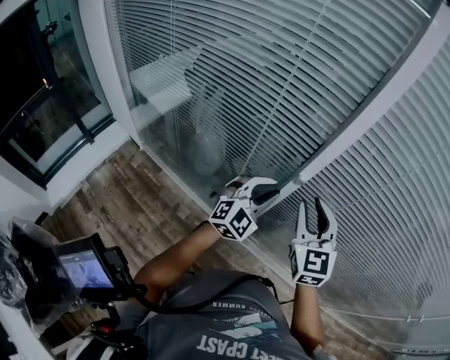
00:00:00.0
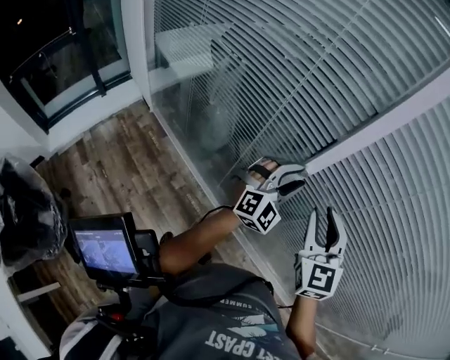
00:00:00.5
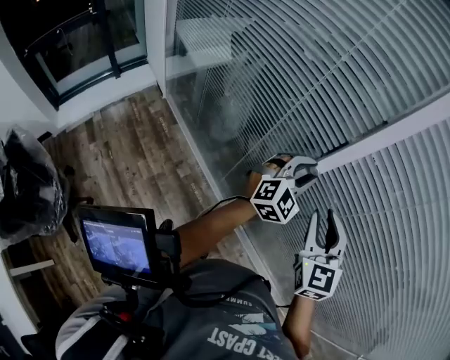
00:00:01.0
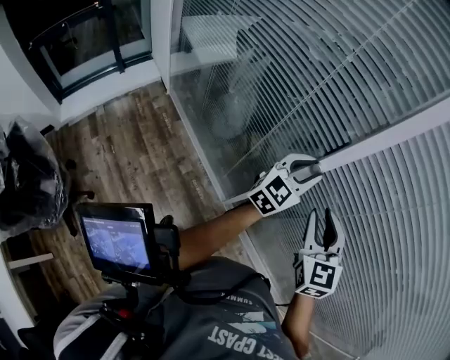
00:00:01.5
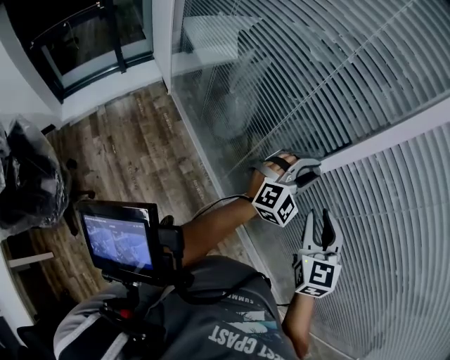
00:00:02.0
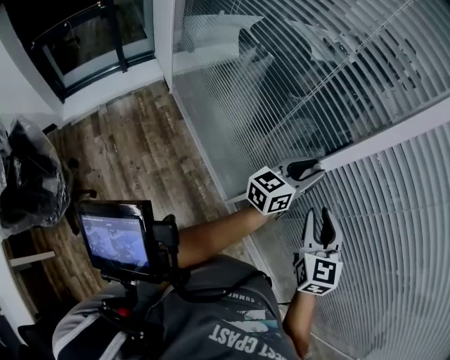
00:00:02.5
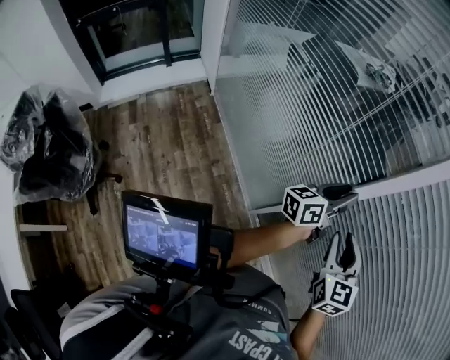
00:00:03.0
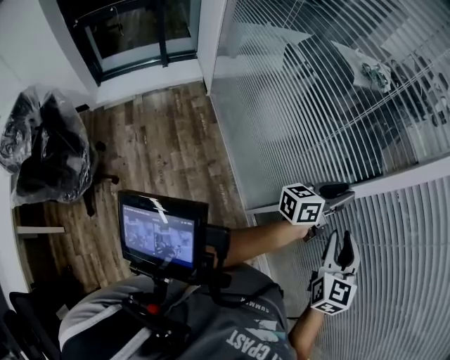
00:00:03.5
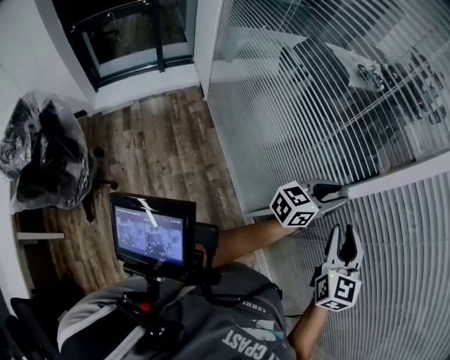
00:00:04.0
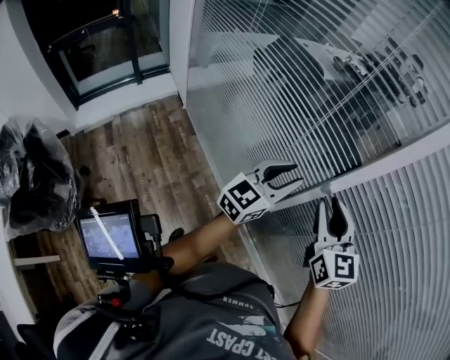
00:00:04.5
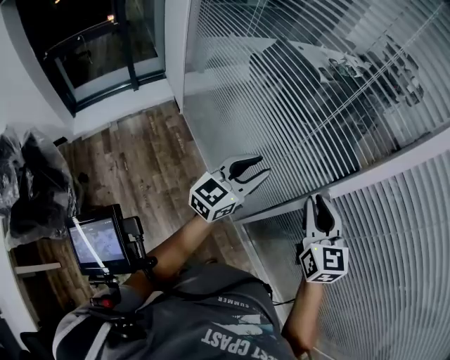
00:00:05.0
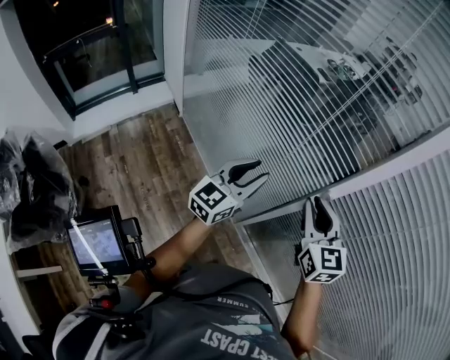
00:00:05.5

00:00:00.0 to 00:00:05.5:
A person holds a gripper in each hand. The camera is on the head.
00:00:00.0 to 00:00:02.0: The left gripper is displaced to the right and forward by roughly 10 cm, and changes its angle by some 20 degrees; the right gripper ends up approximately 5 cm from where it was.
00:00:02.0 to 00:00:03.5: The left gripper rotates around the line of its fingers by roughly 90 degrees, counterclockwise from behind.
00:00:03.5 to 00:00:05.5: The left gripper heads to the left, covering some 20 cm, and rotates around the line of its fingers by roughly 40 degrees, clockwise from behind; the right gripper travels to the left by approximately 10 cm.

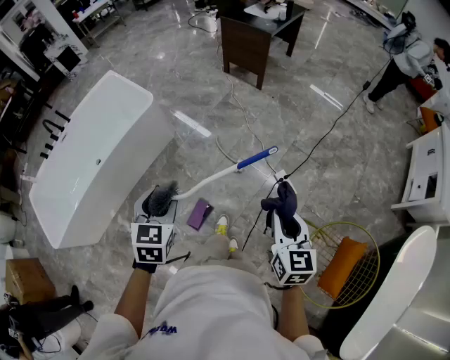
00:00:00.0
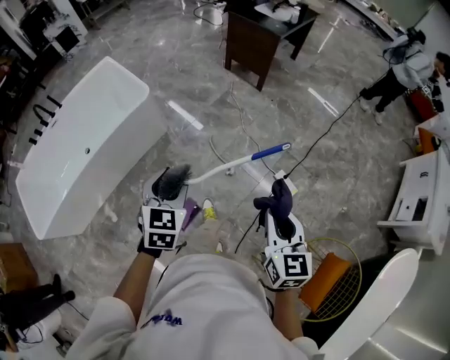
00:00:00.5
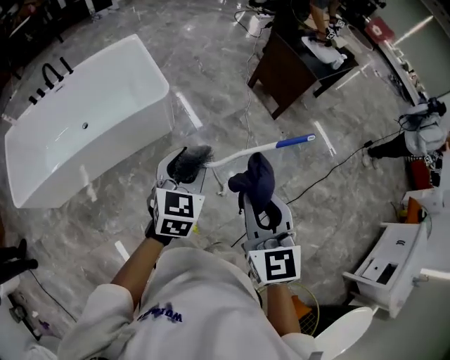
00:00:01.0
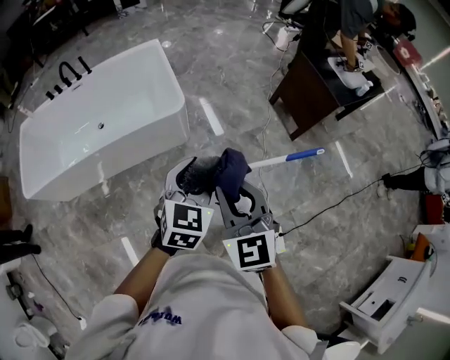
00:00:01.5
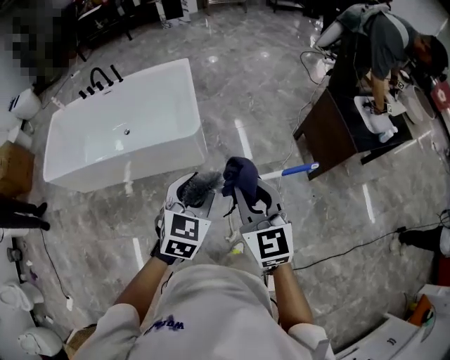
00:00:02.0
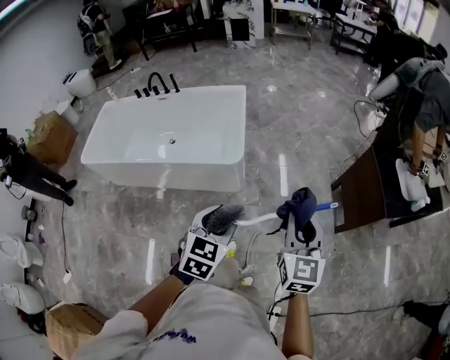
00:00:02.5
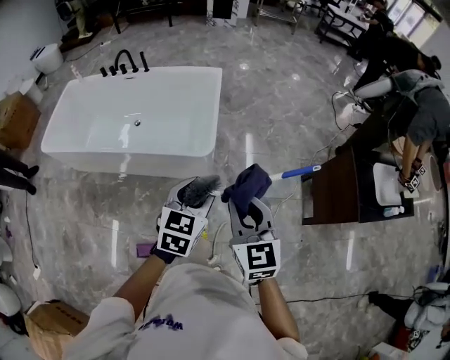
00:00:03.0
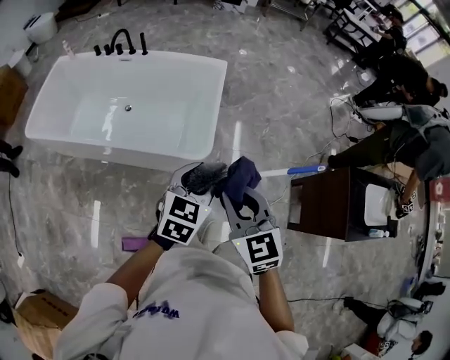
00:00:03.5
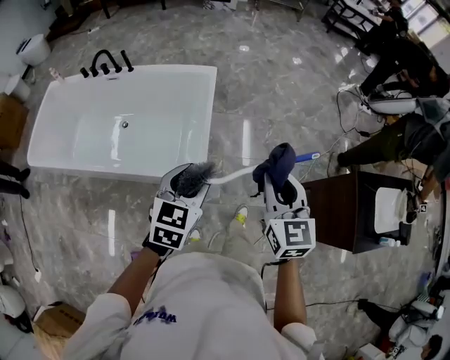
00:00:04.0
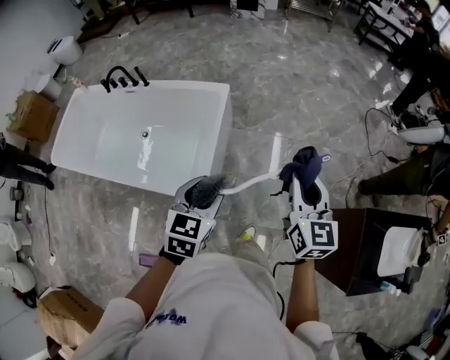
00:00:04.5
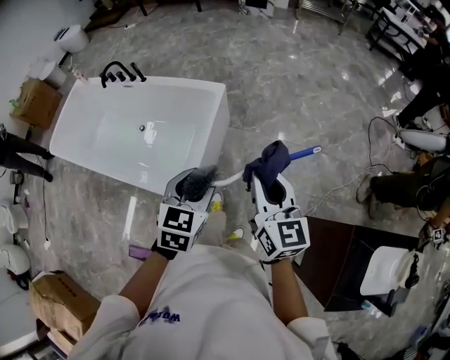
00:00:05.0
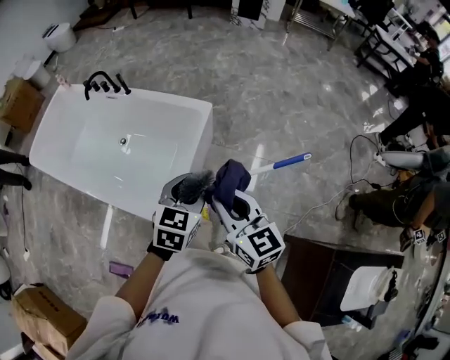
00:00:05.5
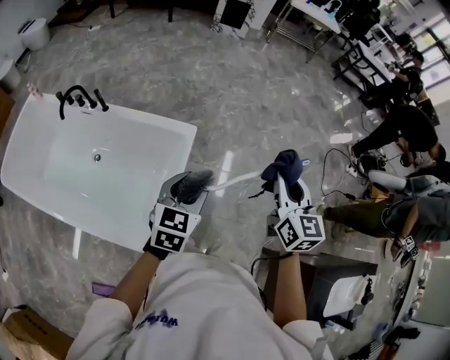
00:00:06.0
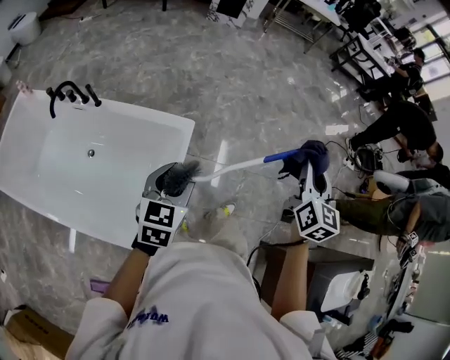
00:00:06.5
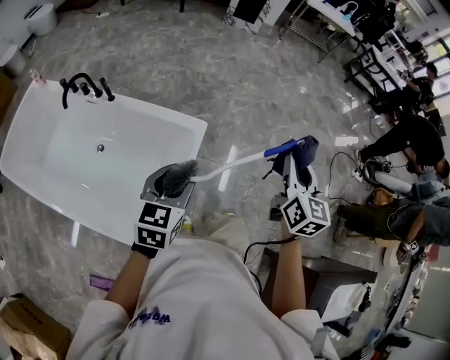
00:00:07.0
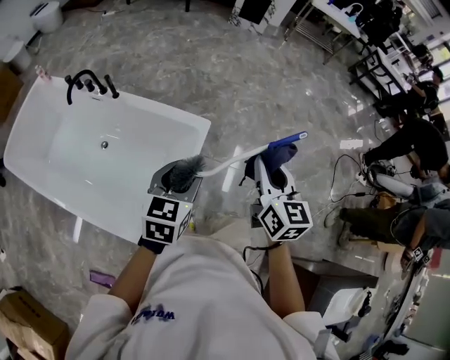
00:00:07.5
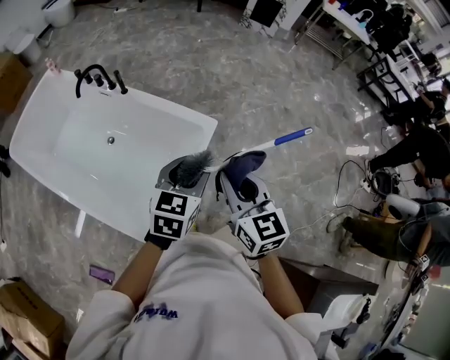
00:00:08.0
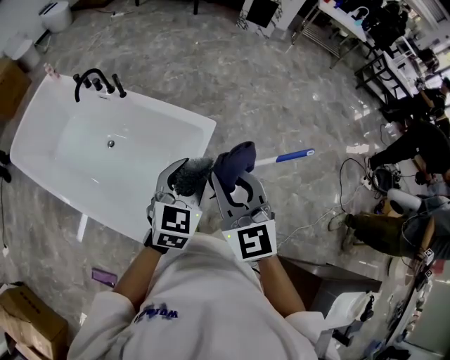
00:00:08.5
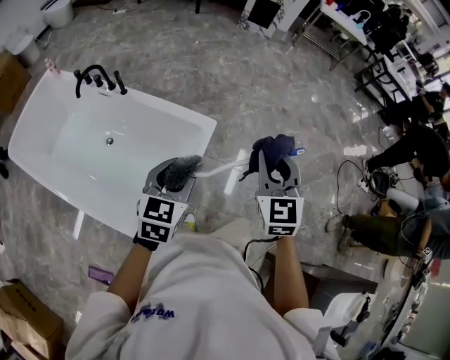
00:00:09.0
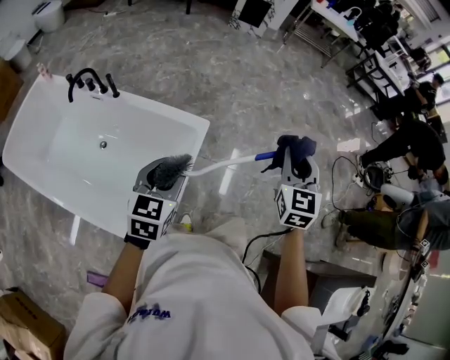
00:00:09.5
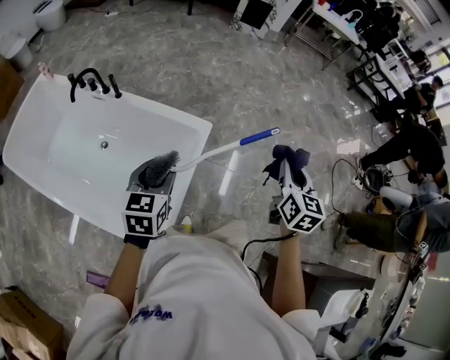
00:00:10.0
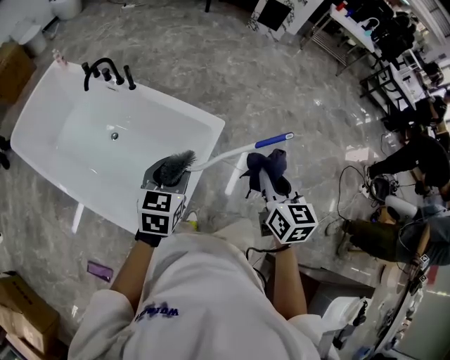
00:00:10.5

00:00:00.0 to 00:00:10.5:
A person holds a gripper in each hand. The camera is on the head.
00:00:00.0 to 00:00:02.0: Both grippers are carried approximately 50 cm. The right gripper changes its angle by roughly 60 degrees, while the left gripper turns by approximately 30 degrees.
00:00:02.0 to 00:00:04.0: Both grippers travel together forward, some 40 cm.
00:00:04.0 to 00:00:06.5: Both grippers are carried some 50 cm.
00:00:06.5 to 00:00:08.5: The right gripper ends up roughly 30 cm from where it was, and rotates approximately 50 degrees.
00:00:08.5 to 00:00:10.5: The left gripper is displaced to the left by about 10 cm, while the right gripper goes some 10 cm to the right and downward, and swivels some 30 degrees.

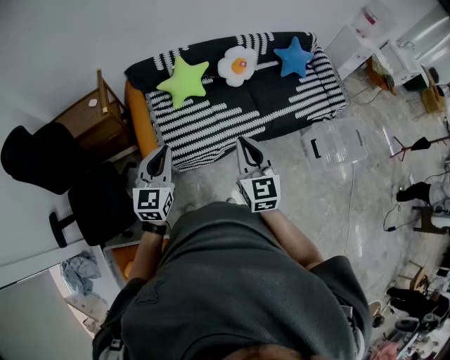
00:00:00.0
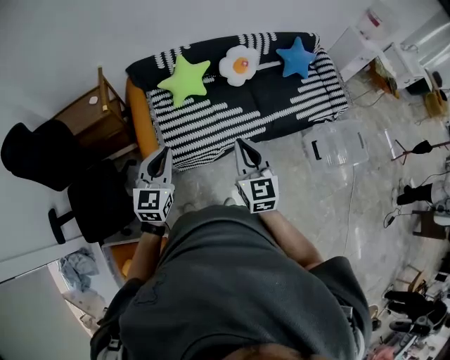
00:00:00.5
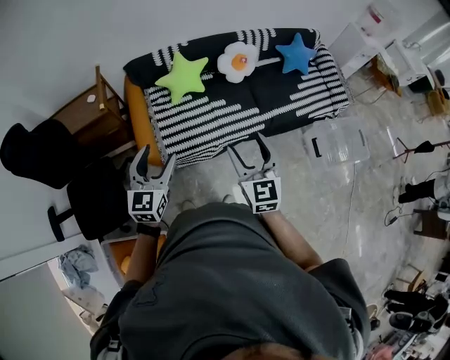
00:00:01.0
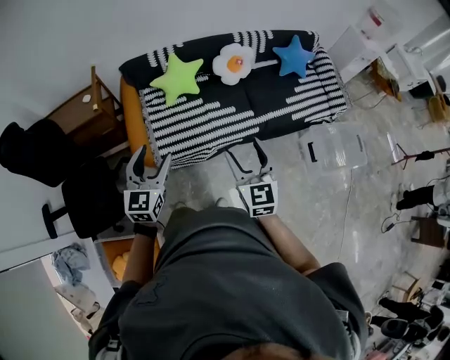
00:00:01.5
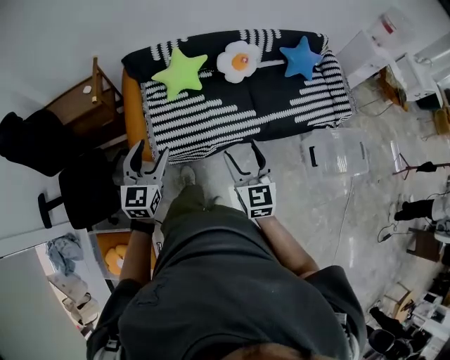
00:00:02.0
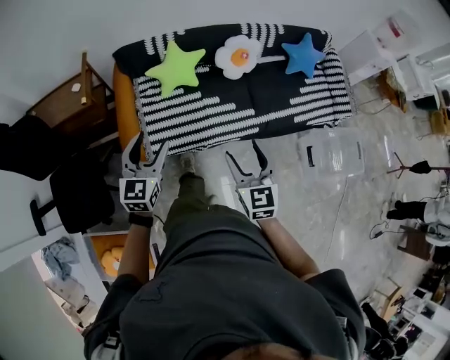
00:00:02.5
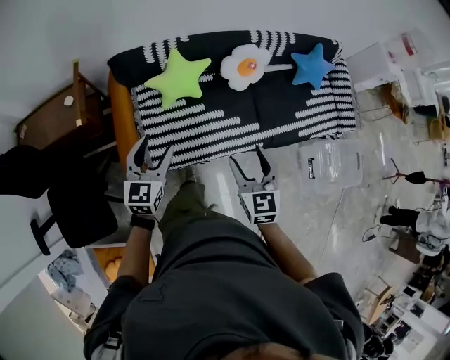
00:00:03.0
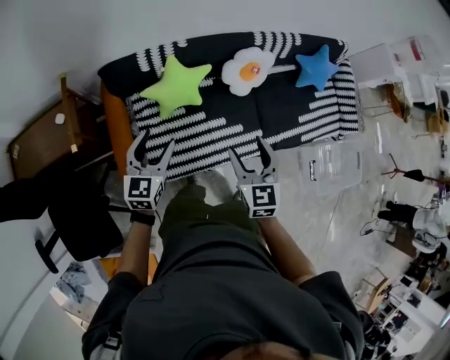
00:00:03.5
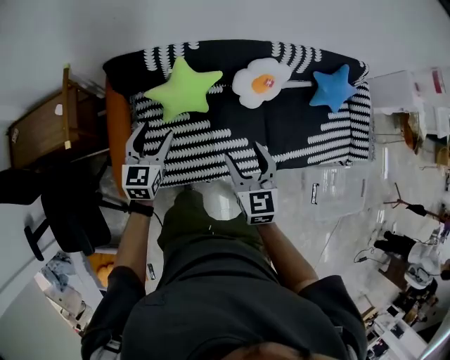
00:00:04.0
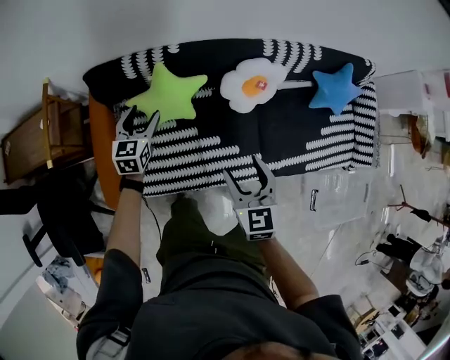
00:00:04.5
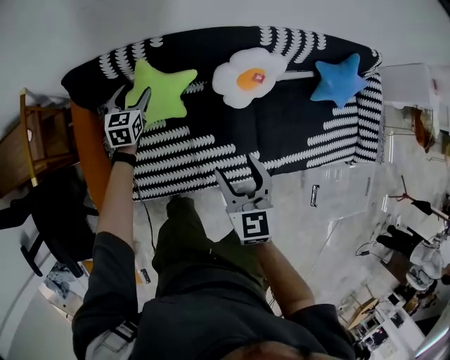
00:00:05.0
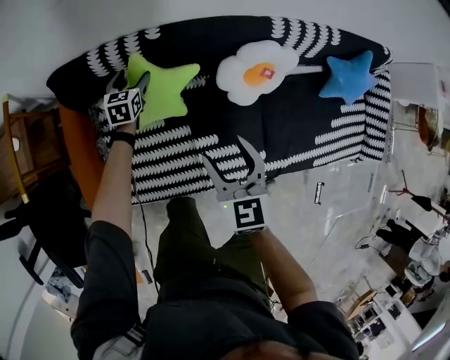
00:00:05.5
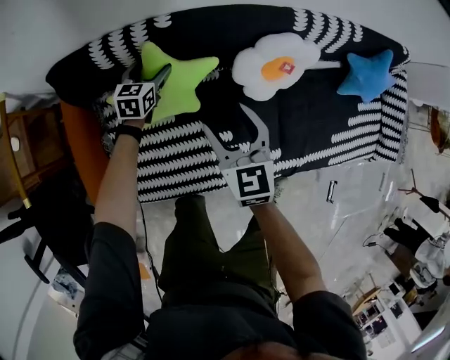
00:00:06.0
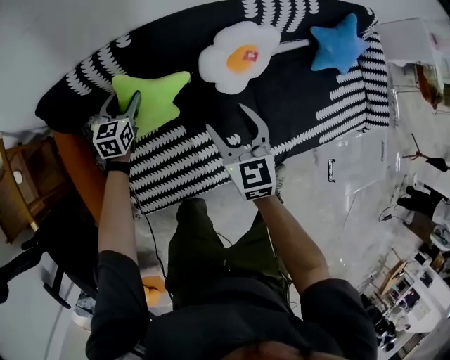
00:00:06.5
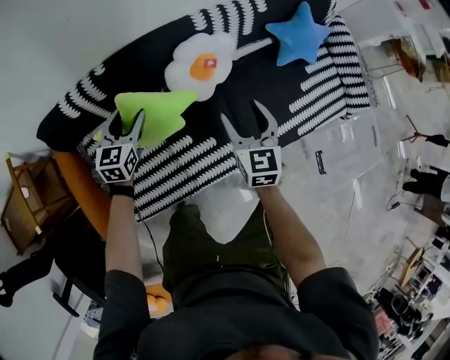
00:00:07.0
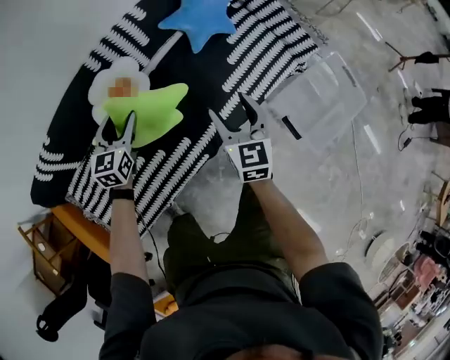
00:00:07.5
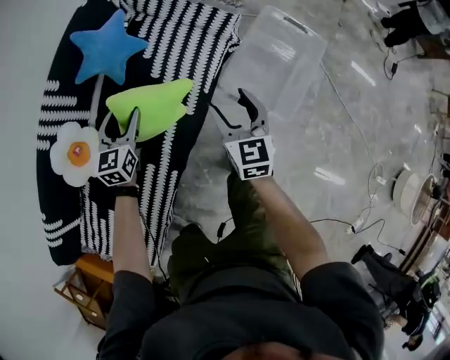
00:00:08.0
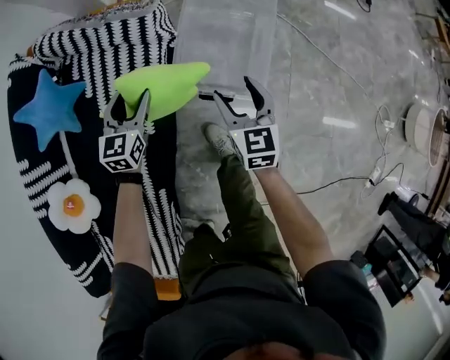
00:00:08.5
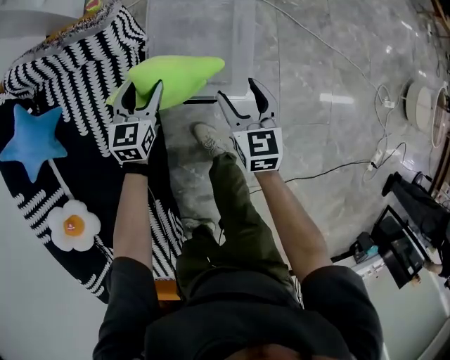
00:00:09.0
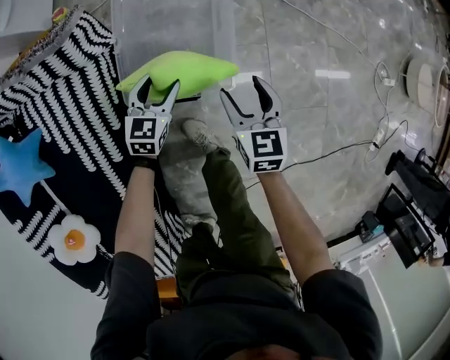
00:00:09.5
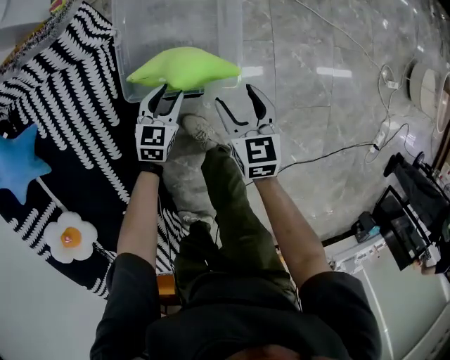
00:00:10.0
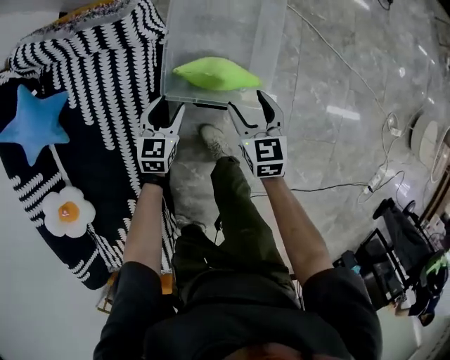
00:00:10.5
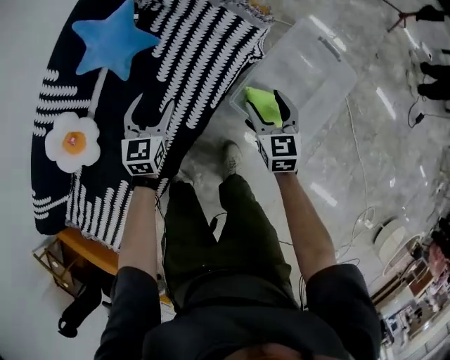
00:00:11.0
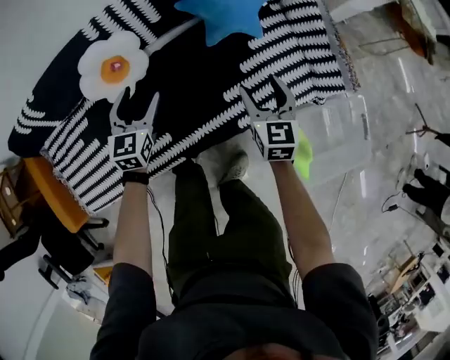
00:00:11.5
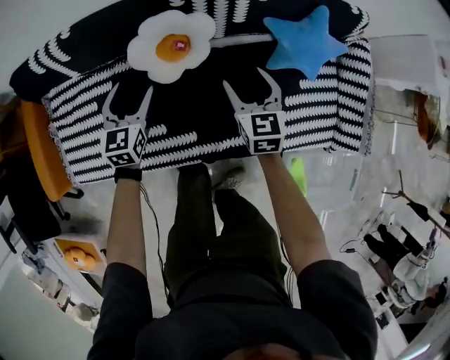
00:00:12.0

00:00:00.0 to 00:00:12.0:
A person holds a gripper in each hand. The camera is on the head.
00:00:00.0 to 00:00:02.0: The left gripper heads to the right, covering roughly 5 cm, and opens. The right gripper shifts approximately 10 cm to the right and downward, and opens up.
00:00:02.0 to 00:00:04.0: The left gripper moves forward and downward, about 50 cm, while the right gripper is displaced forward by approximately 40 cm.
00:00:04.0 to 00:00:06.0: The left gripper goes about 40 cm downward and forward, while the right gripper shifts some 30 cm forward and downward.
00:00:06.0 to 00:00:08.0: The two grippers travel together, approximately 80 cm. The left gripper changes its angle by approximately 50 degrees. Meanwhile the right gripper swivels some 60 degrees.
00:00:08.0 to 00:00:10.0: The left gripper shifts by approximately 60 cm, and swivels some 50 degrees, while the right gripper ends up some 40 cm from where it was, and turns by some 40 degrees.
00:00:10.0 to 00:00:12.0: Both grippers are carried some 80 cm. The right gripper turns by about 90 degrees. Meanwhile the left gripper changes its angle by roughly 110 degrees, and opens its fingers.
